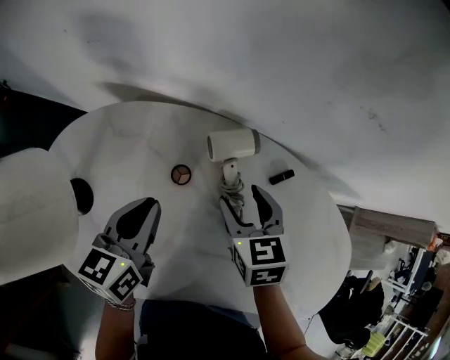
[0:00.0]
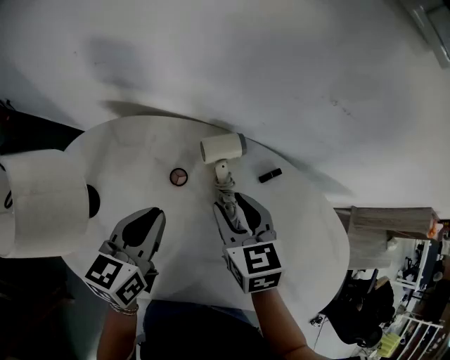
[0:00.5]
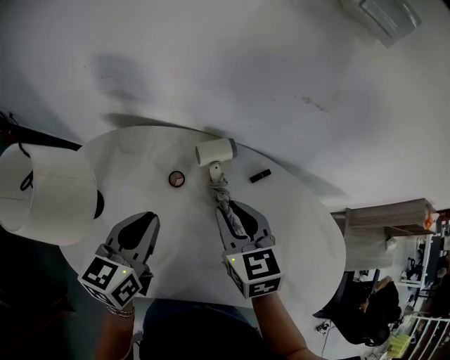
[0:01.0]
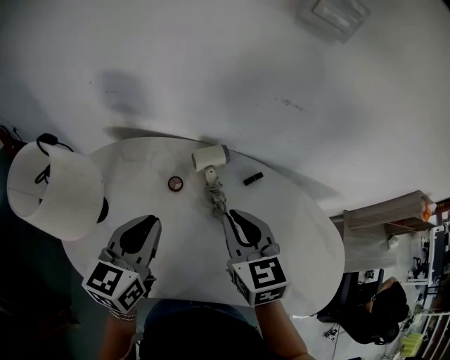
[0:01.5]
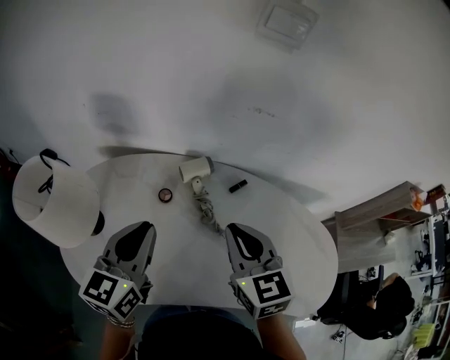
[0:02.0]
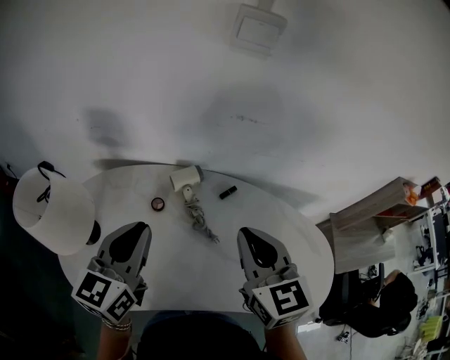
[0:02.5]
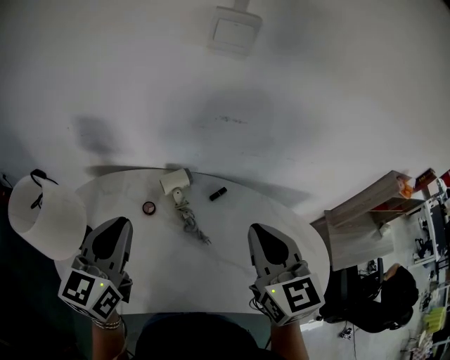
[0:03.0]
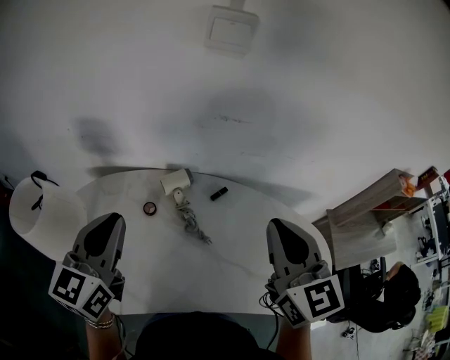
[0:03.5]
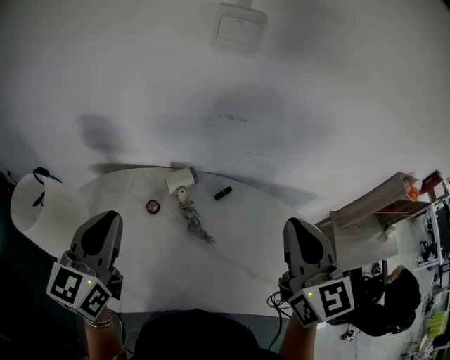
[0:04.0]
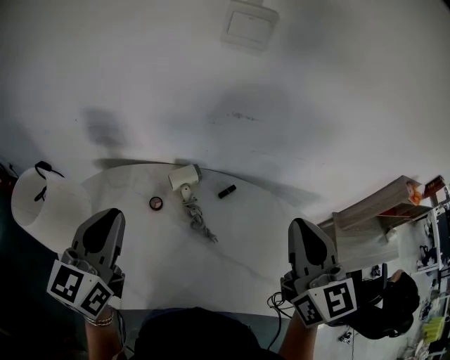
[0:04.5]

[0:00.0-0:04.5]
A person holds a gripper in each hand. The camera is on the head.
0:00.0 to 0:02.0: The two grippers go some 20 cm upward and backward. The right gripper swivels about 20 degrees, and closes up. The left gripper swivels approximately 20 degrees.
0:02.0 to 0:04.5: The left gripper heads upward, covering roughly 10 cm; the right gripper shifts roughly 20 cm to the right and upward, and turns by approximately 20 degrees.

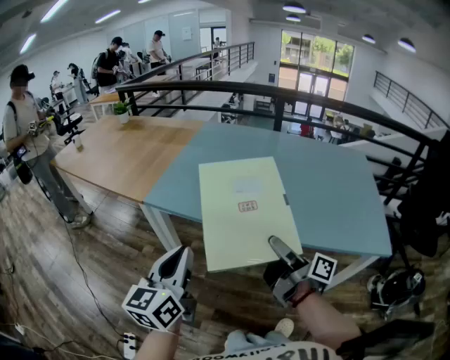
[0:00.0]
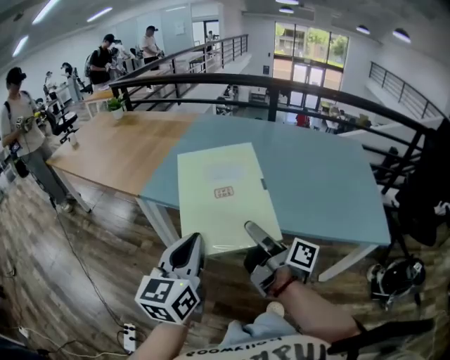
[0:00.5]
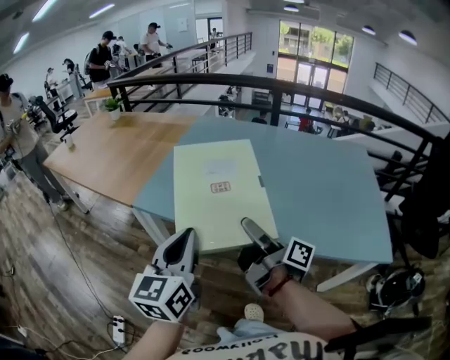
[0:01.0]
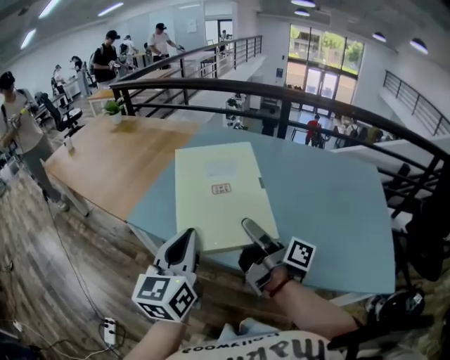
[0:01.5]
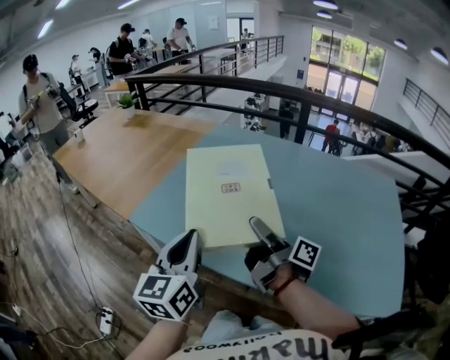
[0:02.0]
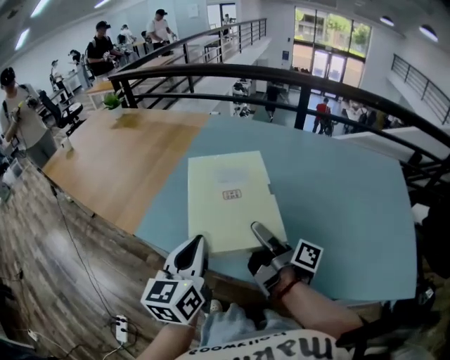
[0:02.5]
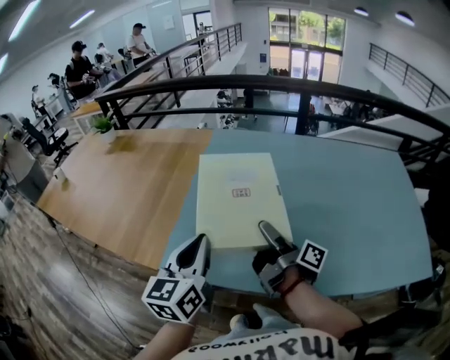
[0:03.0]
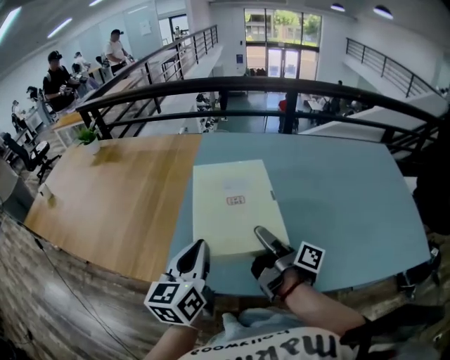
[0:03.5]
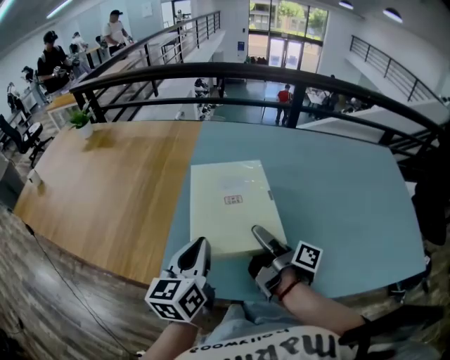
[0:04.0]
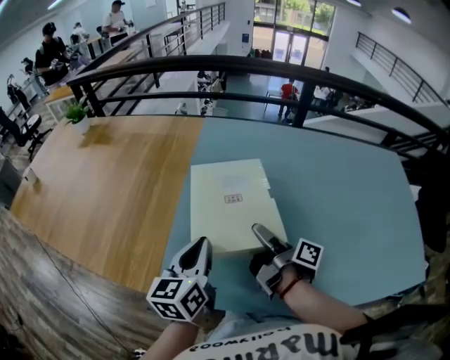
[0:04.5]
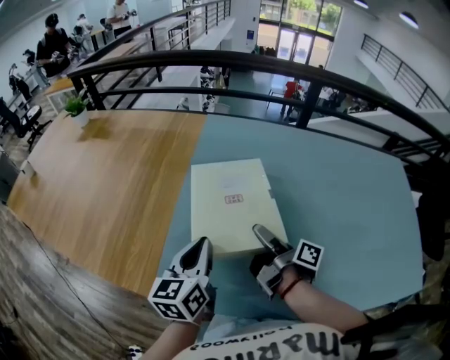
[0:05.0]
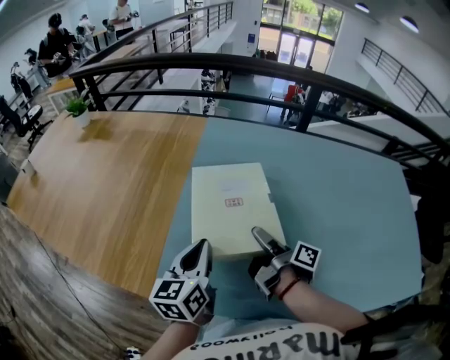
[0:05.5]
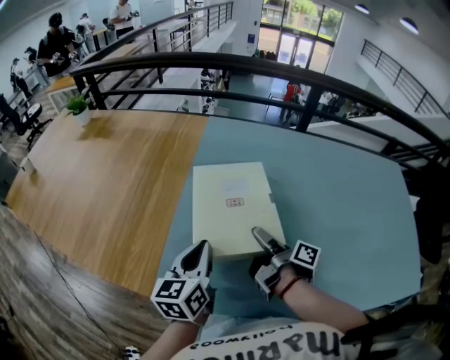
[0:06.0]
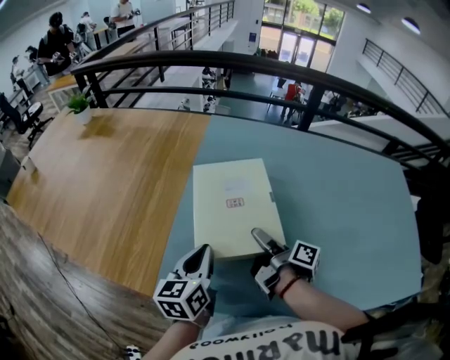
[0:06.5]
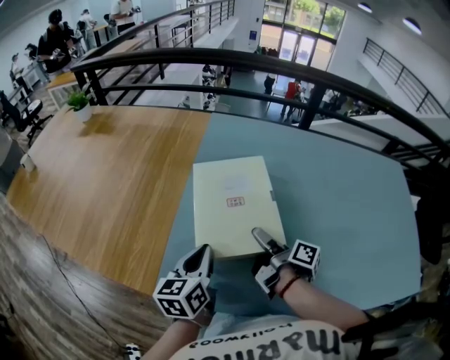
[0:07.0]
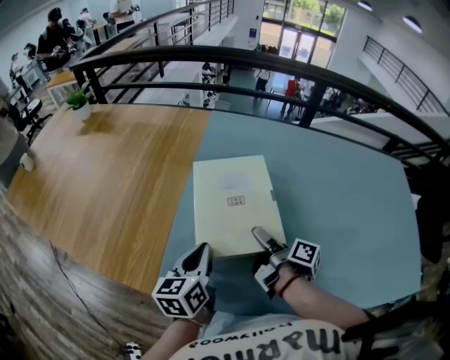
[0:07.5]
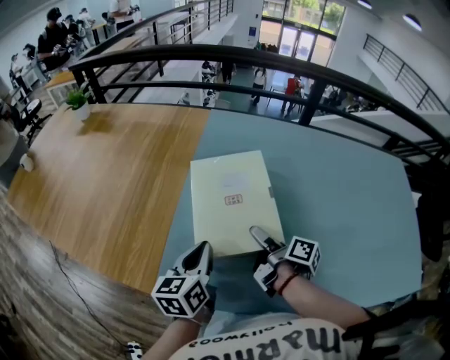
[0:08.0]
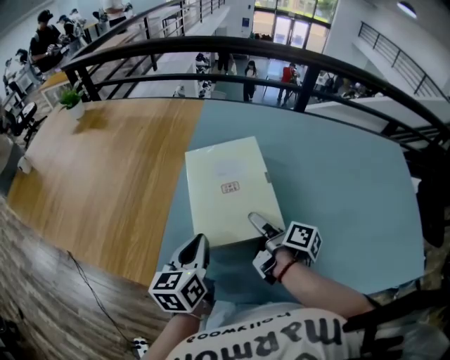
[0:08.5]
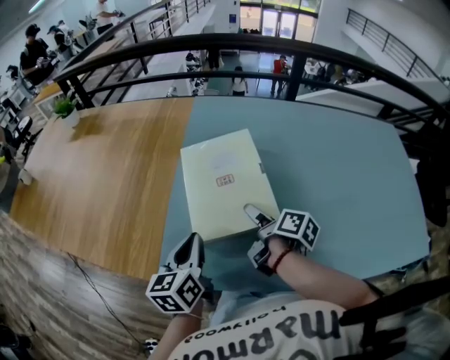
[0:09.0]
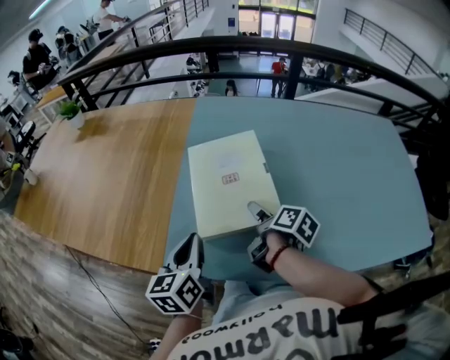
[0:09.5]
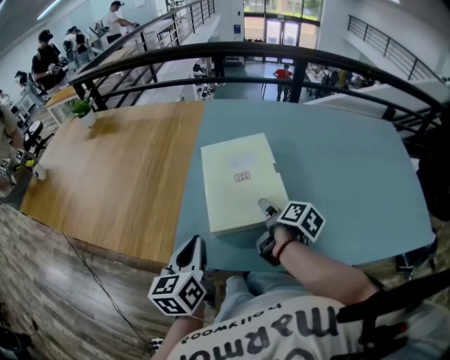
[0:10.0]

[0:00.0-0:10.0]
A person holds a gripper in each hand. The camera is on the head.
0:00.0 to 0:02.0: The left gripper moves approximately 20 cm.
0:02.0 to 0:04.0: The left gripper moves roughly 20 cm, and rotates roughly 20 degrees.
0:04.0 to 0:06.0: The left gripper shifts by some 5 cm.
0:08.0 to 0:10.0: The left gripper shifts by approximately 10 cm.

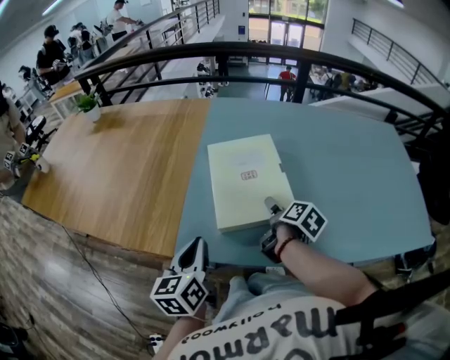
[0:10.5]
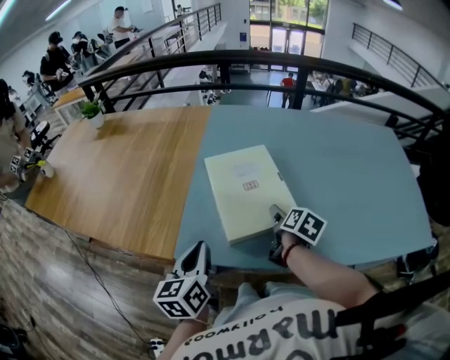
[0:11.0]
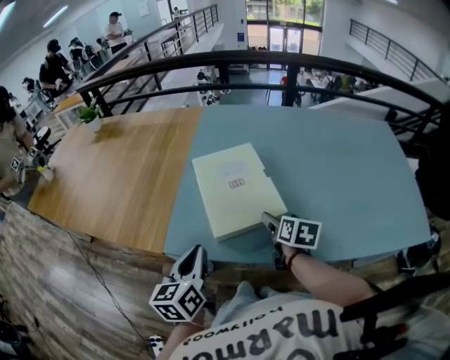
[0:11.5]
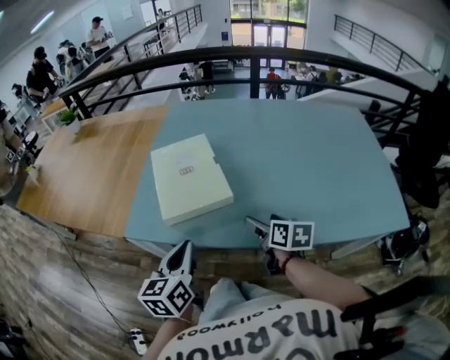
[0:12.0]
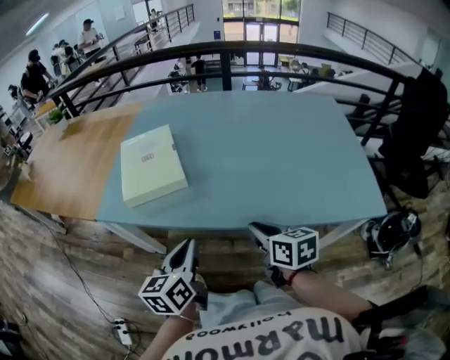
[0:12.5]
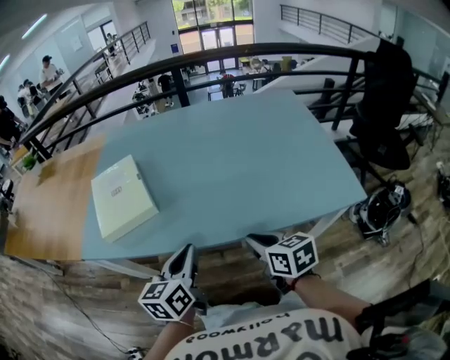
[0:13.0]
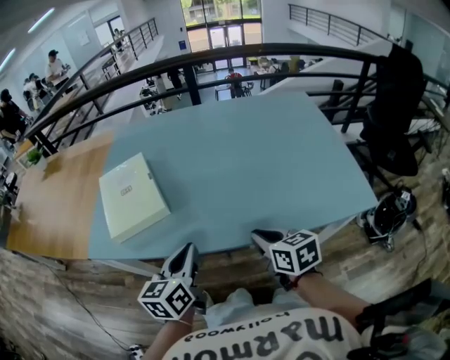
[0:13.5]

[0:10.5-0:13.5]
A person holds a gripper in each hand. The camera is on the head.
0:10.5 to 0:12.0: The left gripper moves roughly 15 cm.
0:12.0 to 0:13.5: The left gripper moves some 20 cm.

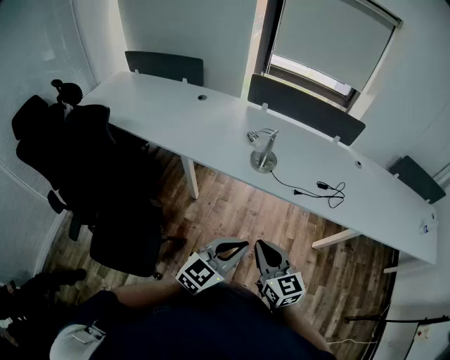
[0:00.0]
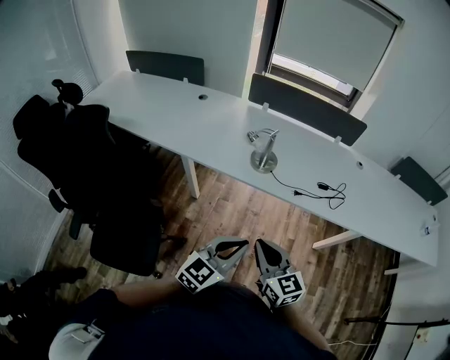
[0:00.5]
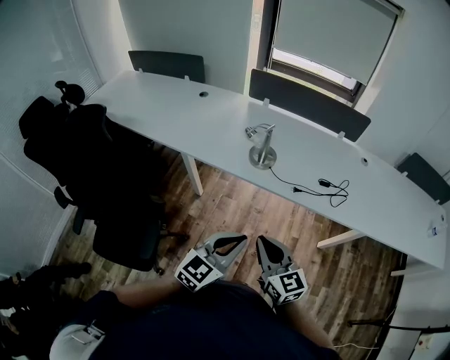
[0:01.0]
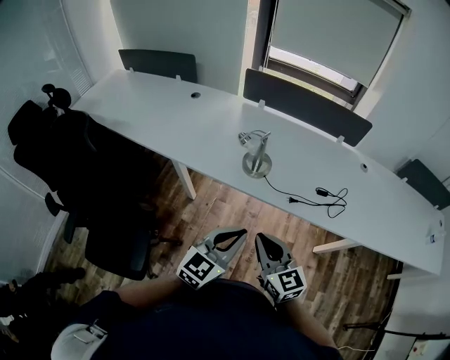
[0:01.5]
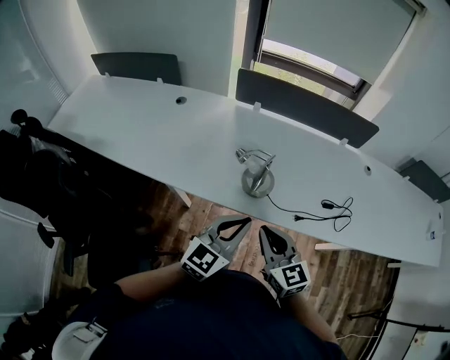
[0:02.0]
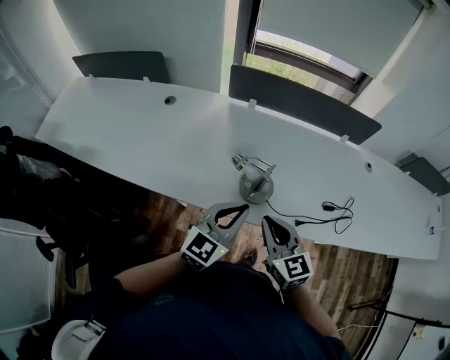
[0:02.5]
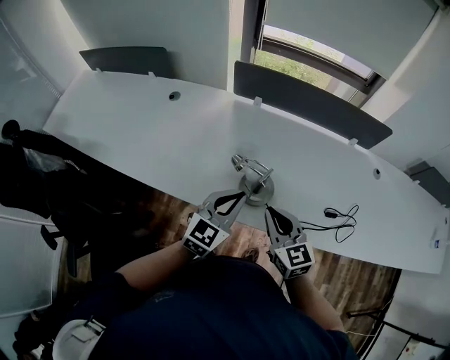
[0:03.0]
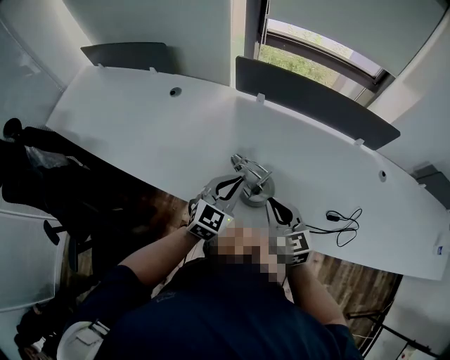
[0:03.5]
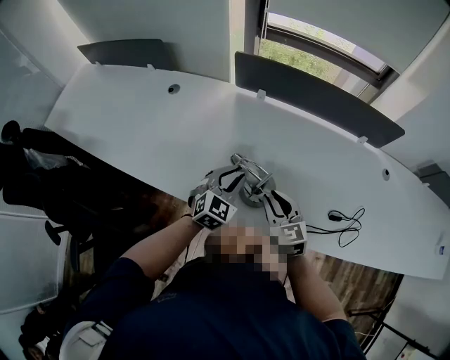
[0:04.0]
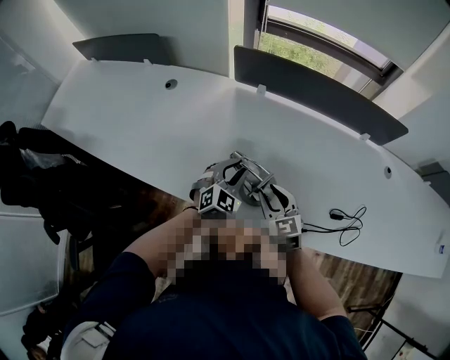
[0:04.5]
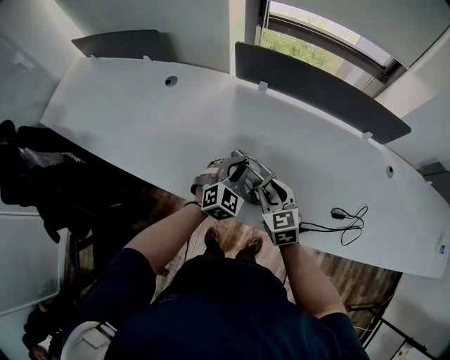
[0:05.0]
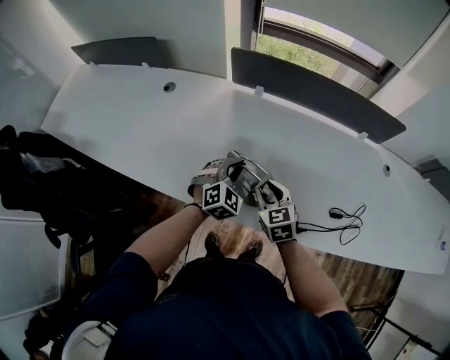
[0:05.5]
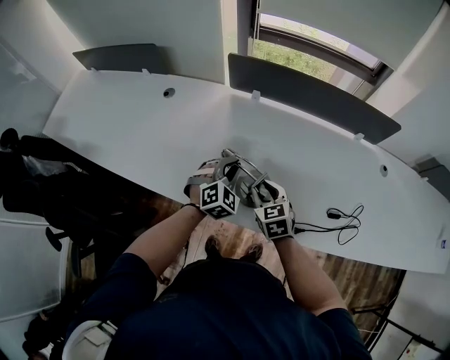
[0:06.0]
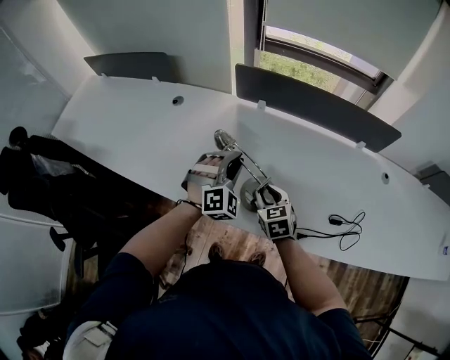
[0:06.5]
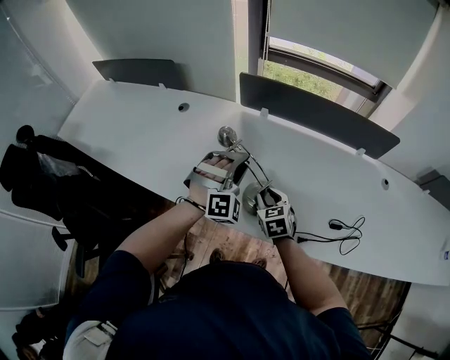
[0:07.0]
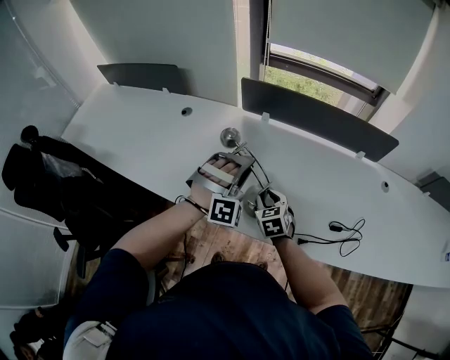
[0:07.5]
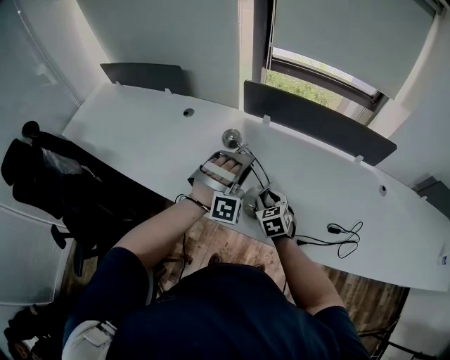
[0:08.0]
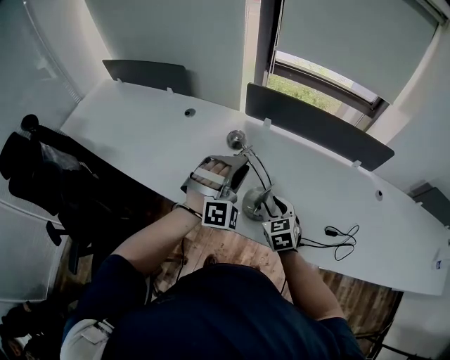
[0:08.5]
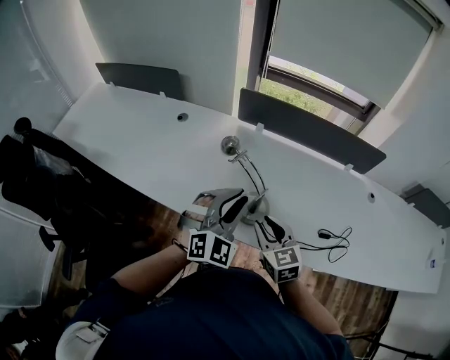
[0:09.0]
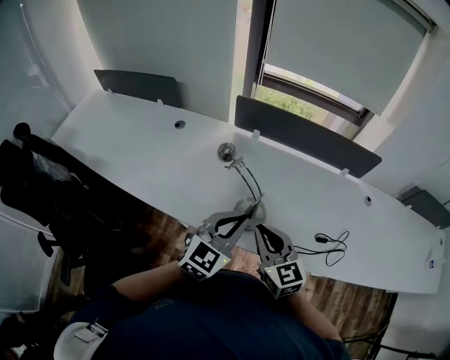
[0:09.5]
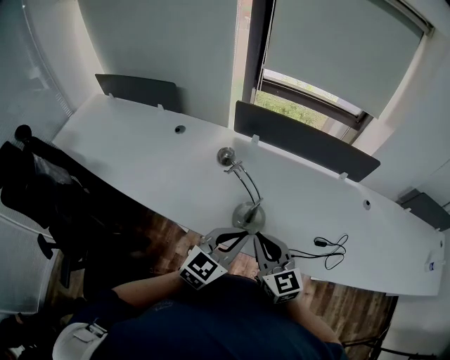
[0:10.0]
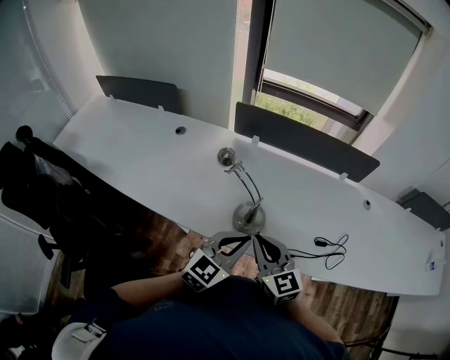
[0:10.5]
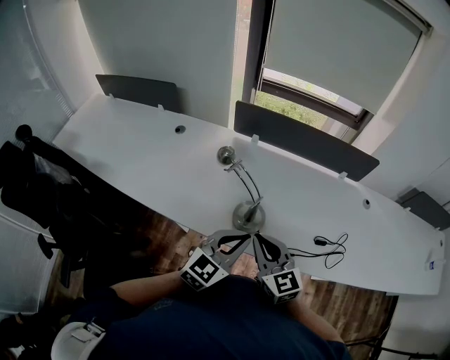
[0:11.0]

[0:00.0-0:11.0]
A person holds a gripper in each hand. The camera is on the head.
0:00.0 to 0:02.0: The two grippers go approximately 25 cm forward.
0:02.0 to 0:03.5: The left gripper travels forward and downward by approximately 25 cm. Meanwhile the right gripper moves forward, approximately 20 cm.
0:03.5 to 0:05.5: Both grippers move downward and forward, about 10 cm. The right gripper opens, while the left gripper turns by approximately 30 degrees.
0:05.5 to 0:07.5: The left gripper goes approximately 15 cm upward, and twists approximately 40 degrees clockwise, seen from behind.
0:07.5 to 0:09.0: The right gripper travels upward and backward by some 15 cm. Meanwhile the left gripper moves backward and upward, approximately 10 cm, and twists about 40 degrees counterclockwise, seen from behind.
0:09.0 to 0:11.0: The left gripper travels backward by some 5 cm, swivels about 40 degrees, and closes up; the right gripper is displaced upward by about 5 cm, and closes up.
